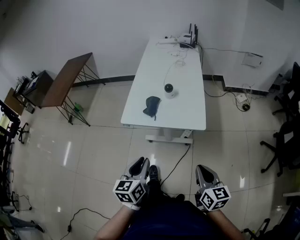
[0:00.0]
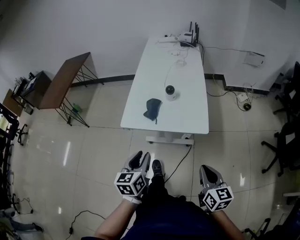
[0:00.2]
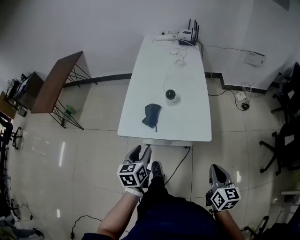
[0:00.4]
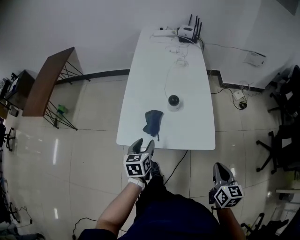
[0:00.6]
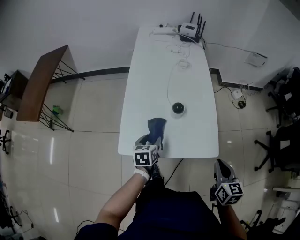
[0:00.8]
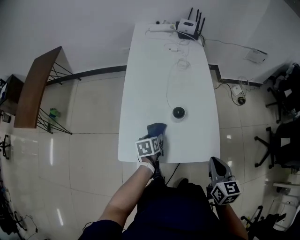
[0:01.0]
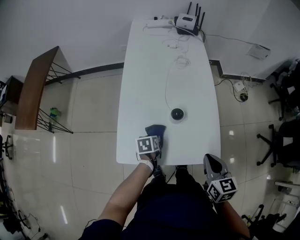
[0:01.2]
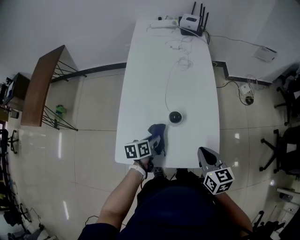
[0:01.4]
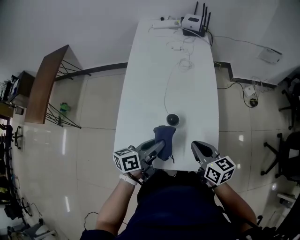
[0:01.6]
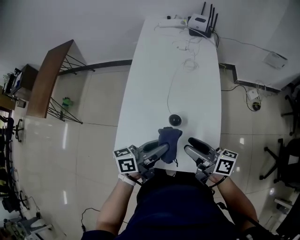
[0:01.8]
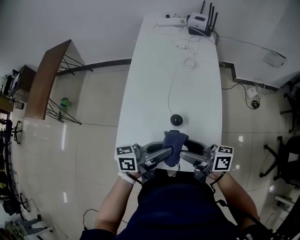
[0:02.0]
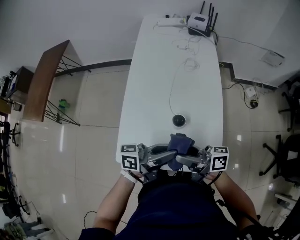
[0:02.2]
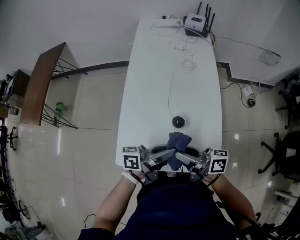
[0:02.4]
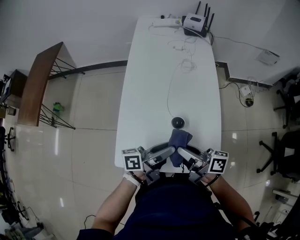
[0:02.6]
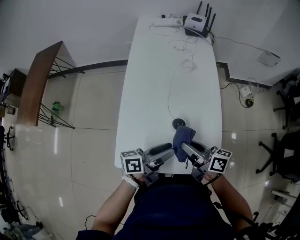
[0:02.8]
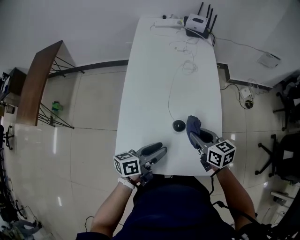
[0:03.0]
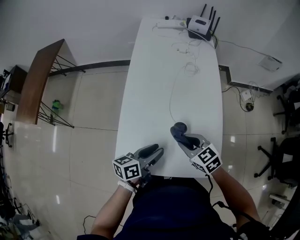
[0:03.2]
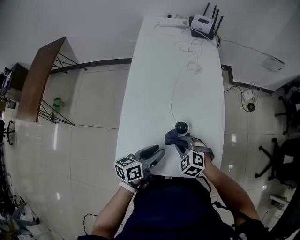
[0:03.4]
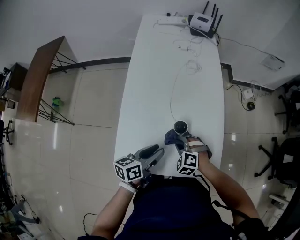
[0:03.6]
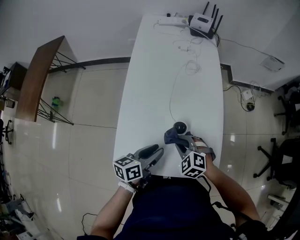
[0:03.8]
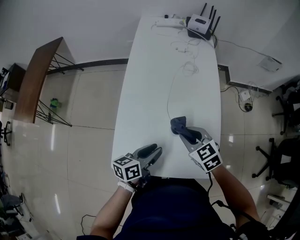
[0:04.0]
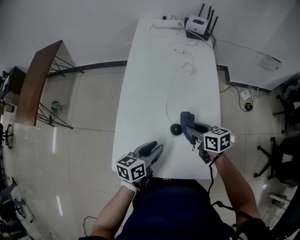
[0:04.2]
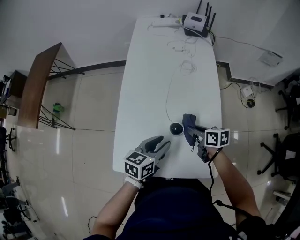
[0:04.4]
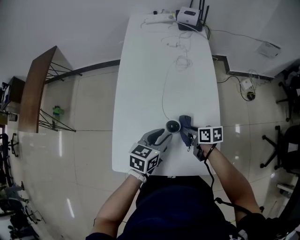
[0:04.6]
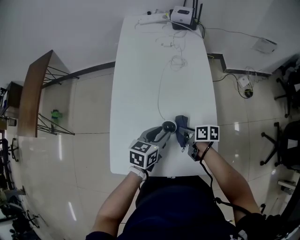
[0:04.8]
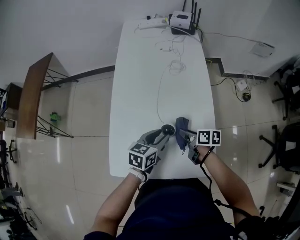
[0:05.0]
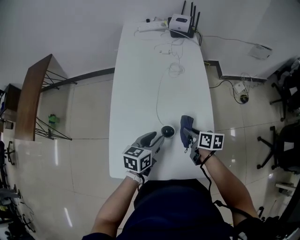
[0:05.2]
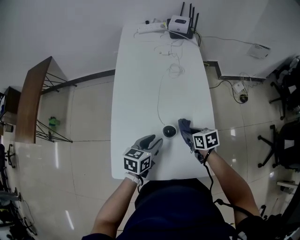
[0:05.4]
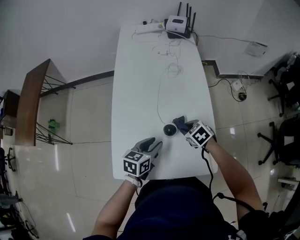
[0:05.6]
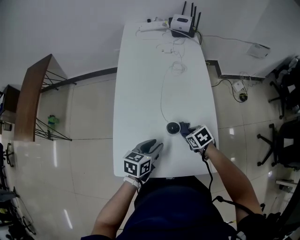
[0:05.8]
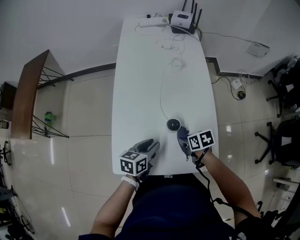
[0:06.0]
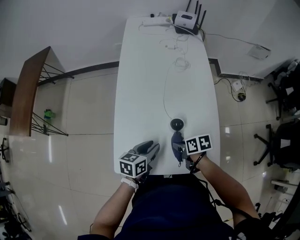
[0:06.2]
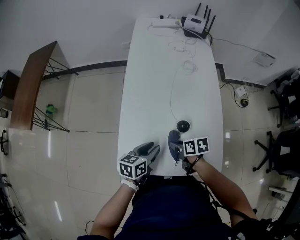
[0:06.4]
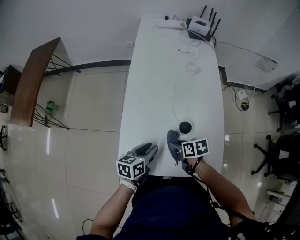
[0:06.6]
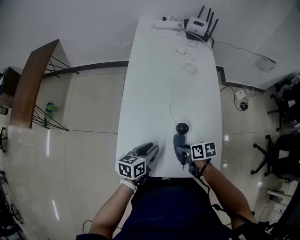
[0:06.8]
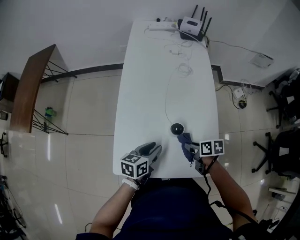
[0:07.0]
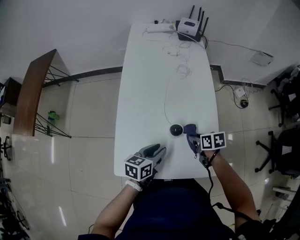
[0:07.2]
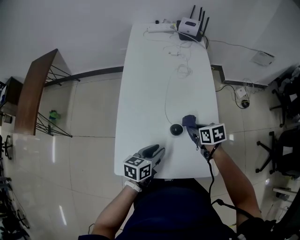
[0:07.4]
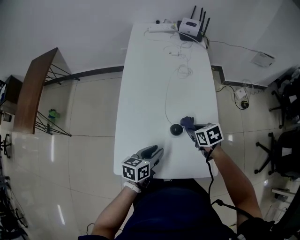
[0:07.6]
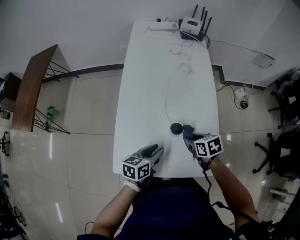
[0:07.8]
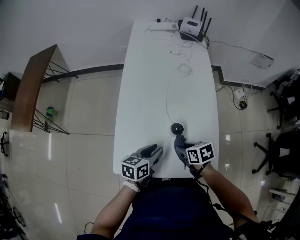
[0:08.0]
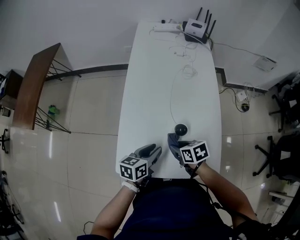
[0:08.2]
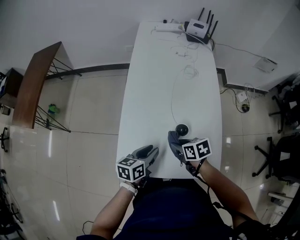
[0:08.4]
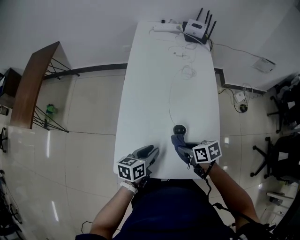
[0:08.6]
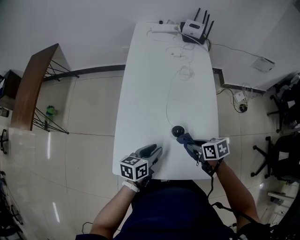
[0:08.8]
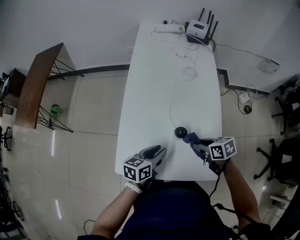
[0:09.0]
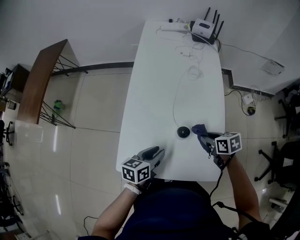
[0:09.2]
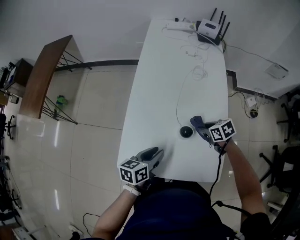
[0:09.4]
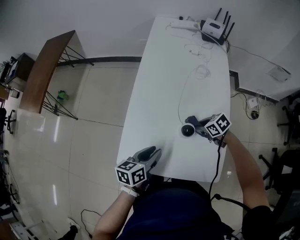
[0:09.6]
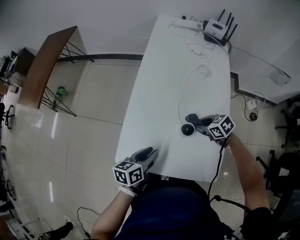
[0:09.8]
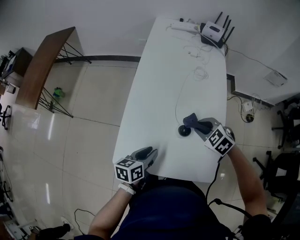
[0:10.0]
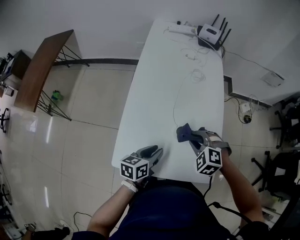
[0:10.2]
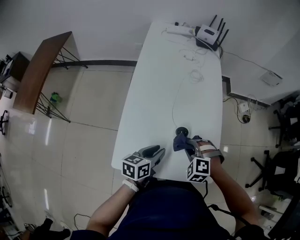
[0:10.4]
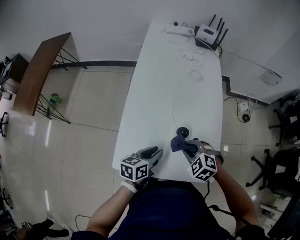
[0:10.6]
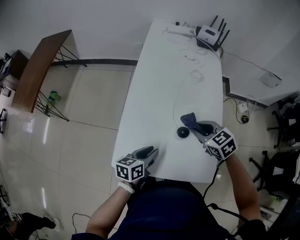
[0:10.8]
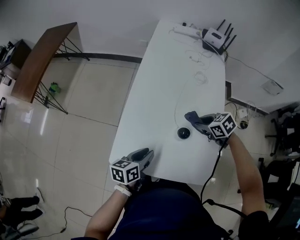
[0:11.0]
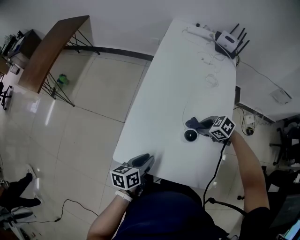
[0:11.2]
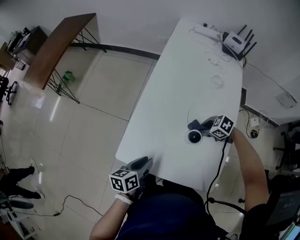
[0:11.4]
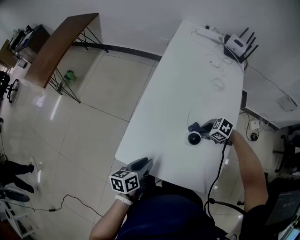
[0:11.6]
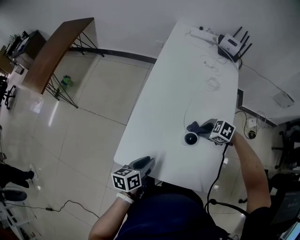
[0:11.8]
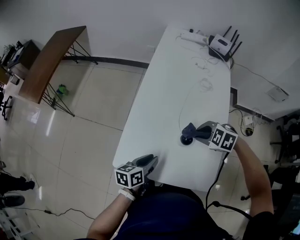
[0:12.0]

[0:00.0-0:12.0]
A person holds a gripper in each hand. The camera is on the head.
0:00.0 to 0:01.6: The two grippers go some 35 cm forward. The left gripper changes its angle by roughly 40 degrees, and opens and closes again.
0:01.6 to 0:03.0: The right gripper ends up approximately 10 cm from where it was, and opens, then closes once more, while the left gripper reaches roughly 10 cm upward, then returns, and opens.
0:03.0 to 0:04.4: The left gripper swivels roughly 30 degrees, while the right gripper goes up and down, roughly 15 cm each way, reversing 2 times, and rotates approximately 20 degrees.
0:04.4 to 0:06.0: The right gripper shifts about 10 cm backward and downward, and changes its angle by approximately 20 degrees; the left gripper travels downward by roughly 5 cm.
0:06.0 to 0:07.6: The right gripper travels forward by roughly 5 cm, and goes to the left and returns, some 10 cm each way. Meanwhile the left gripper travels to the left and back again, approximately 5 cm each way.
0:07.6 to 0:09.0: The right gripper is displaced backward by about 5 cm, and moves about 10 cm to the left and comes back.
0:09.0 to 0:10.4: The right gripper goes up and down, roughly 10 cm each way, reversing 2 times, and rolls counterclockwise, seen from behind, by roughly 80 degrees.
0:10.4 to 0:12.0: The right gripper goes up and down, roughly 15 cm each way, reversing 2 times, and swivels some 30 degrees.

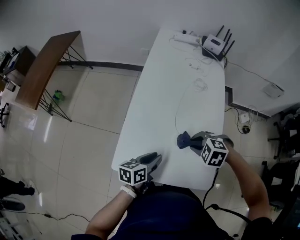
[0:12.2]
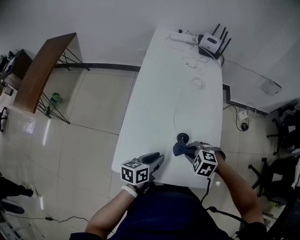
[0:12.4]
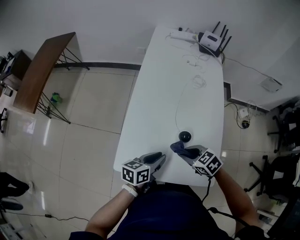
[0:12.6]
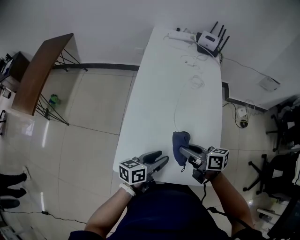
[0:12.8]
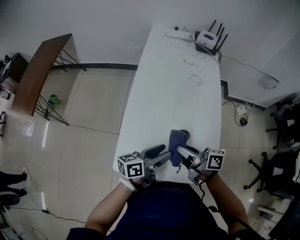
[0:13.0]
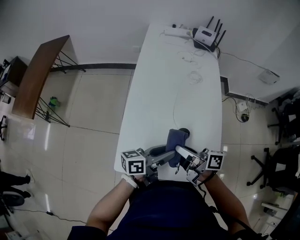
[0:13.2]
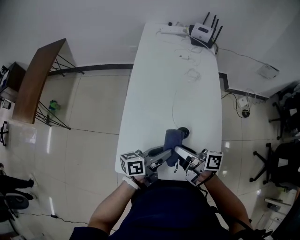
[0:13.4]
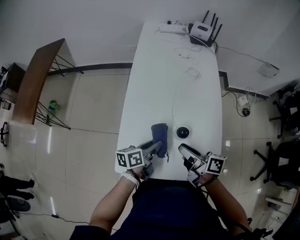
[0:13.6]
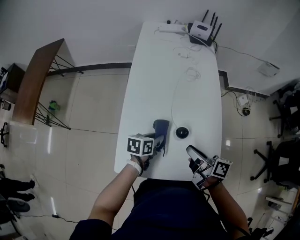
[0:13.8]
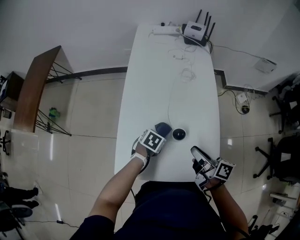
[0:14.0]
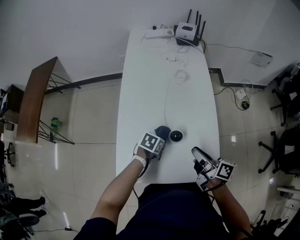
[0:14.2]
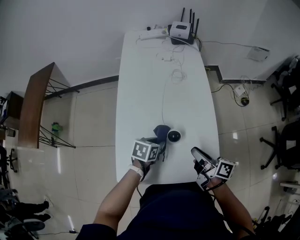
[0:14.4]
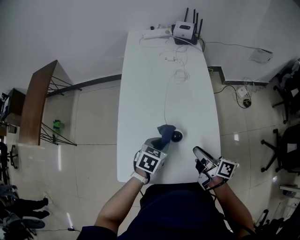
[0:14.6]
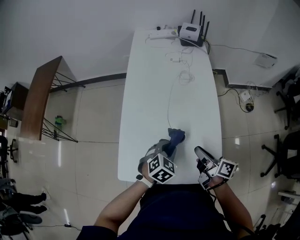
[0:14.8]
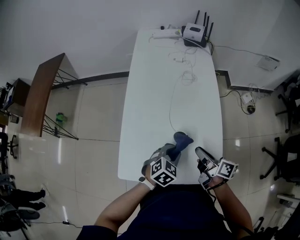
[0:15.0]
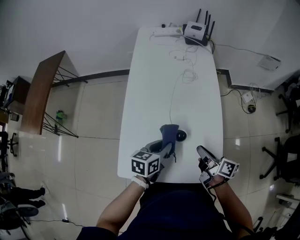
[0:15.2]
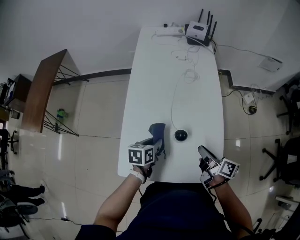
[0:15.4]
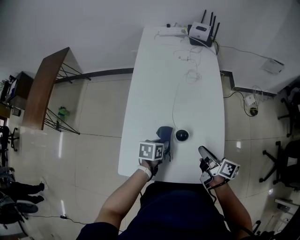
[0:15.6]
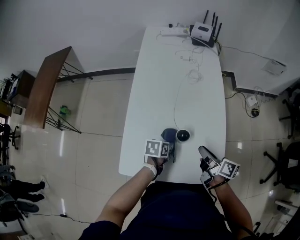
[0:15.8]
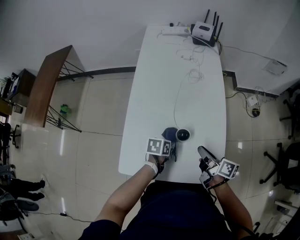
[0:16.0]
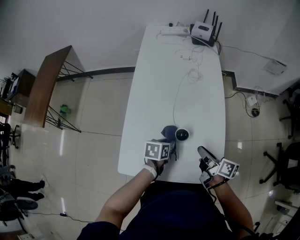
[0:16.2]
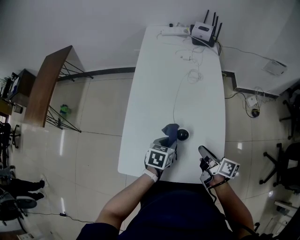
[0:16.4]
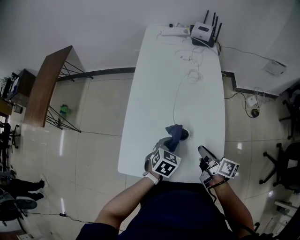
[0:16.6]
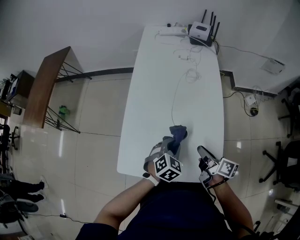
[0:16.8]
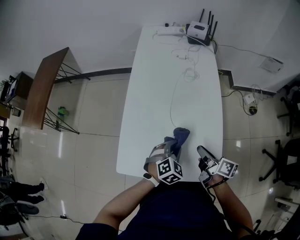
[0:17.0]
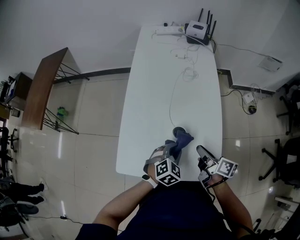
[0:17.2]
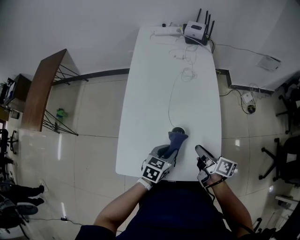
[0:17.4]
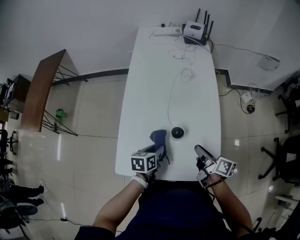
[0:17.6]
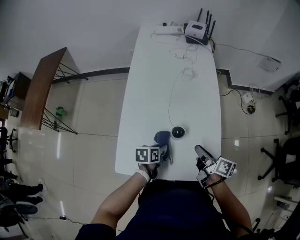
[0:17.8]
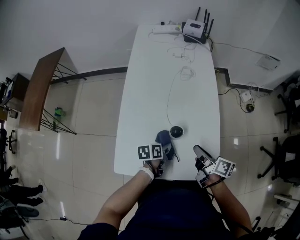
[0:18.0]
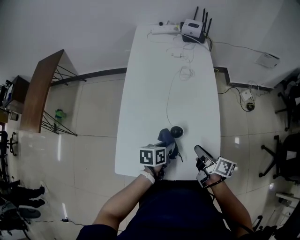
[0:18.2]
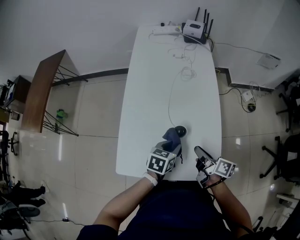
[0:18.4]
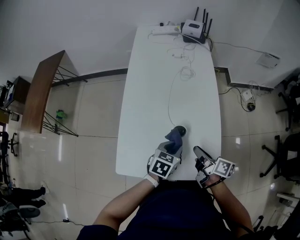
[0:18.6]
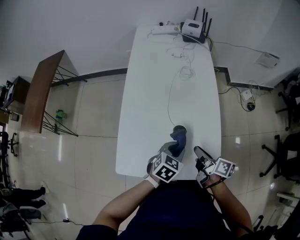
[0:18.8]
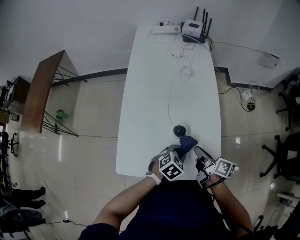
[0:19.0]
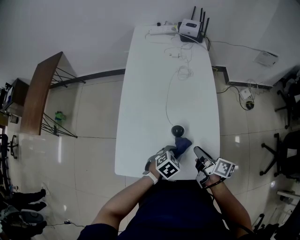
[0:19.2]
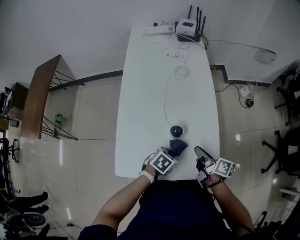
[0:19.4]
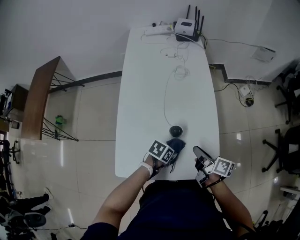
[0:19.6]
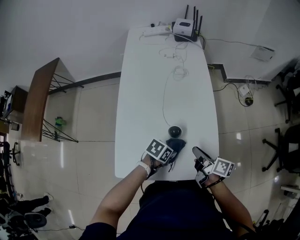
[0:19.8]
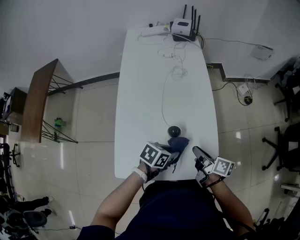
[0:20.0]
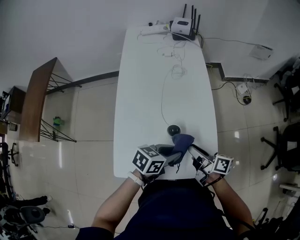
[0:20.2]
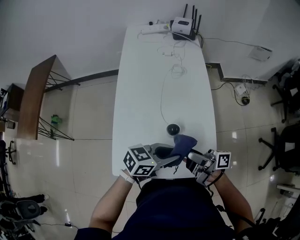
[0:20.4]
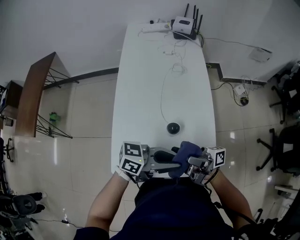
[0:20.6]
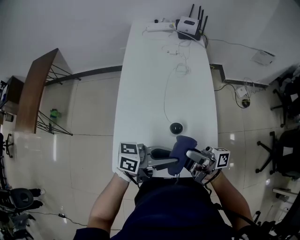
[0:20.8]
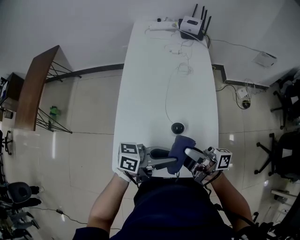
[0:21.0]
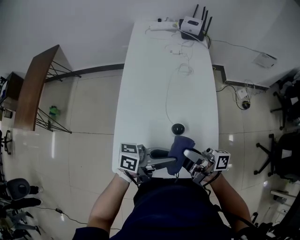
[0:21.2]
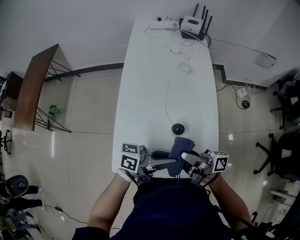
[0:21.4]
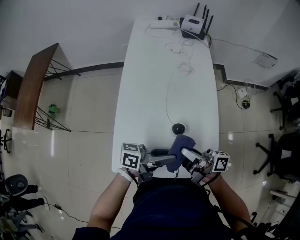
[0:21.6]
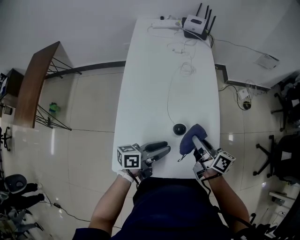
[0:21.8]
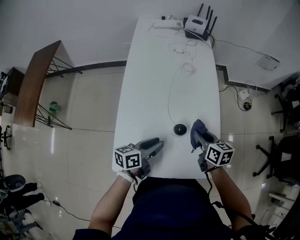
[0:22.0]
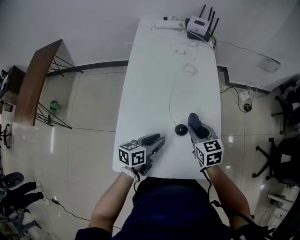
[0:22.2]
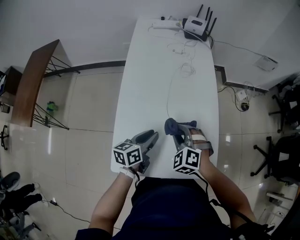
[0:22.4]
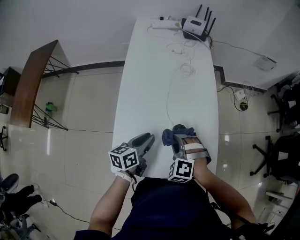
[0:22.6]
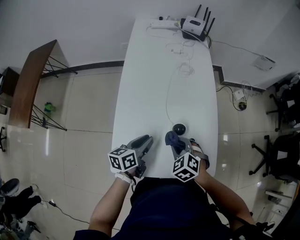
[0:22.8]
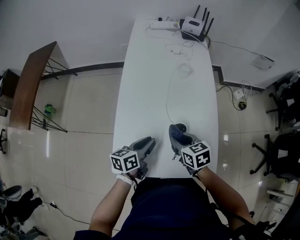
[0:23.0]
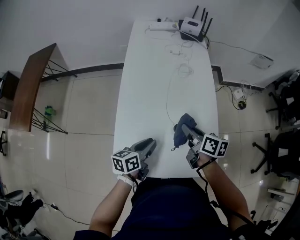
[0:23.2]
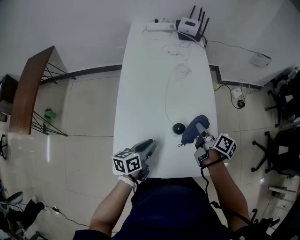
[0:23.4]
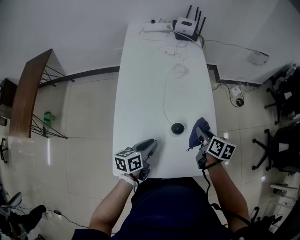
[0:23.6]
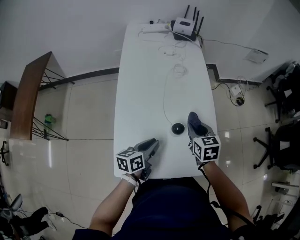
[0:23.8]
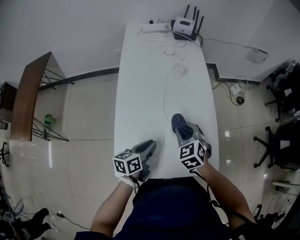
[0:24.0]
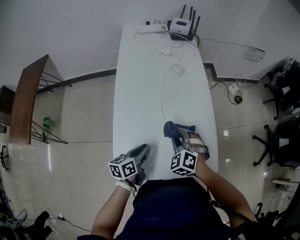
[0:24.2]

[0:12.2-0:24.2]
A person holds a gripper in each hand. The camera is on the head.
0:12.2 to 0:13.8: The right gripper moves some 5 cm upward and comes back, and rolls clockwise, seen from behind, by some 100 degrees; the left gripper heads forward and downward, covering approximately 10 cm, and opens and closes again.
0:13.8 to 0:15.2: The left gripper shifts approximately 5 cm upward, while the right gripper is displaced to the right by roughly 5 cm.
0:15.2 to 0:16.6: The left gripper goes downward and returns, about 10 cm each way, and swivels some 30 degrees.
0:16.6 to 0:18.2: The left gripper travels to the left and back again, about 5 cm each way, and rotates around the line of its fingers by roughly 40 degrees, counterclockwise from behind.
0:18.2 to 0:19.8: The left gripper changes place by approximately 5 cm, and rotates some 40 degrees.
0:19.8 to 0:21.2: The left gripper moves upward, roughly 20 cm, and tips its fingers upward by roughly 60 degrees, while the right gripper shifts approximately 10 cm upward, angles its fingers upward, by roughly 30 degrees, and opens and closes again.
0:21.2 to 0:22.6: The right gripper moves downward, roughly 10 cm, and tilts its fingers some 70 degrees downward. Meanwhile the left gripper moves roughly 20 cm, and angles its fingers downward, by some 30 degrees.
0:22.6 to 0:24.2: The right gripper travels to the right and back again, about 15 cm each way, and turns by approximately 20 degrees.
